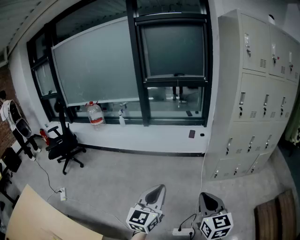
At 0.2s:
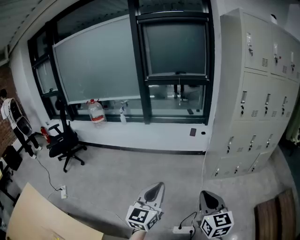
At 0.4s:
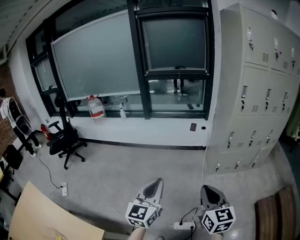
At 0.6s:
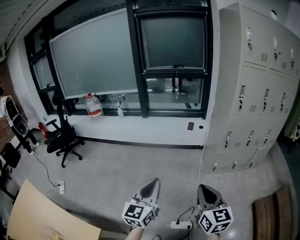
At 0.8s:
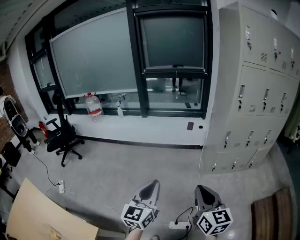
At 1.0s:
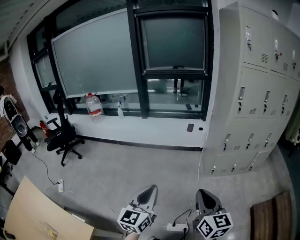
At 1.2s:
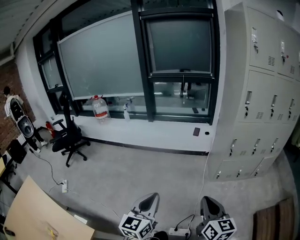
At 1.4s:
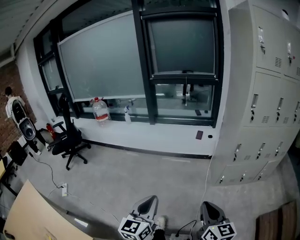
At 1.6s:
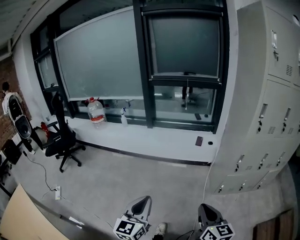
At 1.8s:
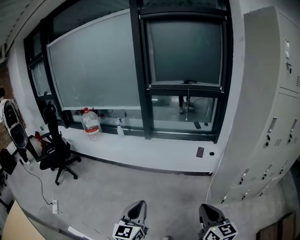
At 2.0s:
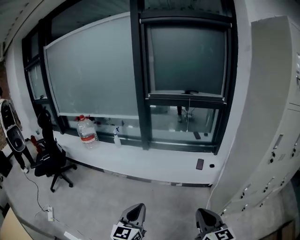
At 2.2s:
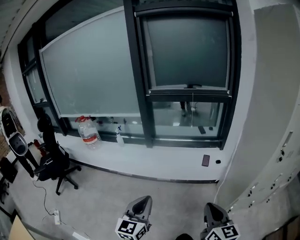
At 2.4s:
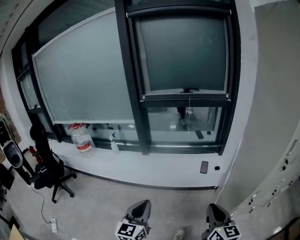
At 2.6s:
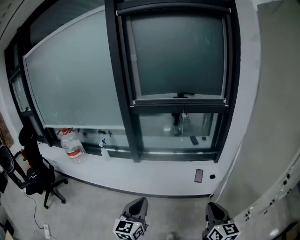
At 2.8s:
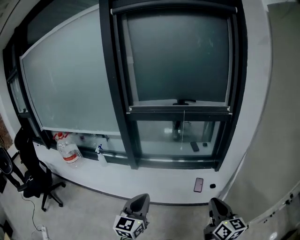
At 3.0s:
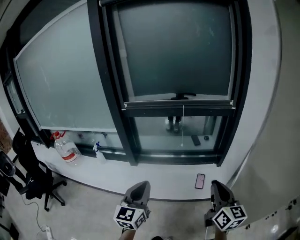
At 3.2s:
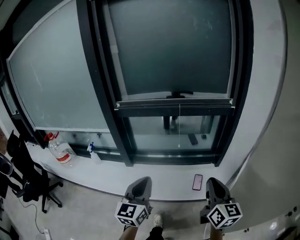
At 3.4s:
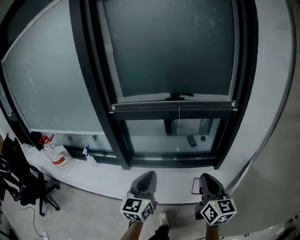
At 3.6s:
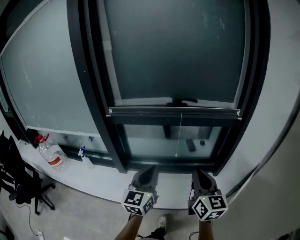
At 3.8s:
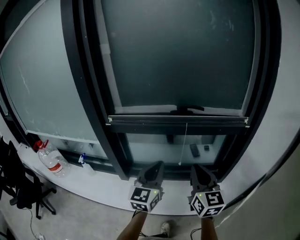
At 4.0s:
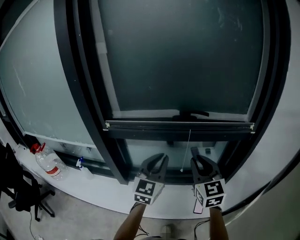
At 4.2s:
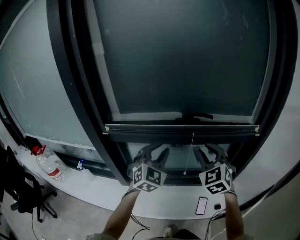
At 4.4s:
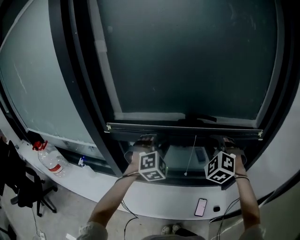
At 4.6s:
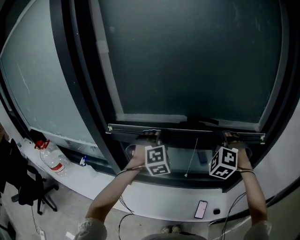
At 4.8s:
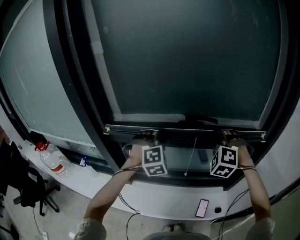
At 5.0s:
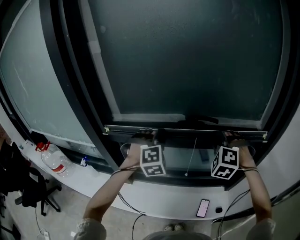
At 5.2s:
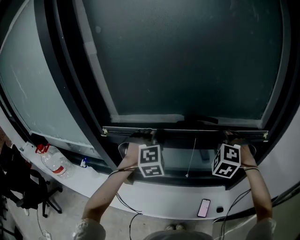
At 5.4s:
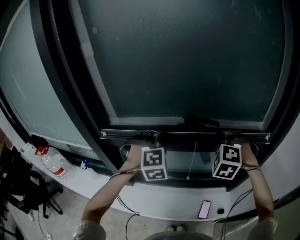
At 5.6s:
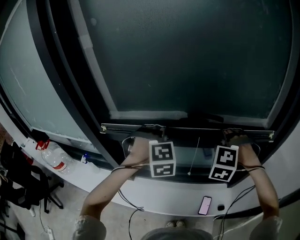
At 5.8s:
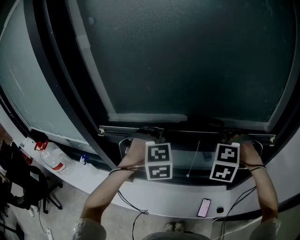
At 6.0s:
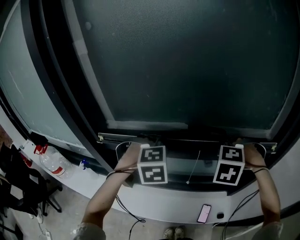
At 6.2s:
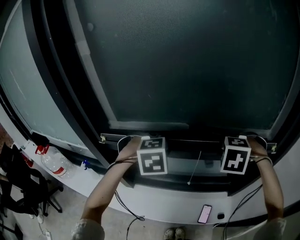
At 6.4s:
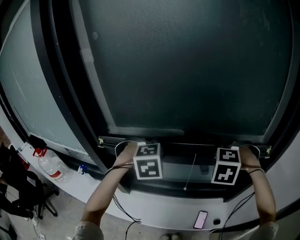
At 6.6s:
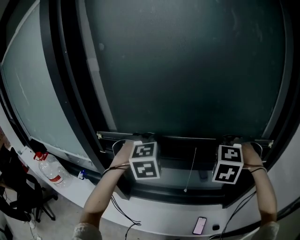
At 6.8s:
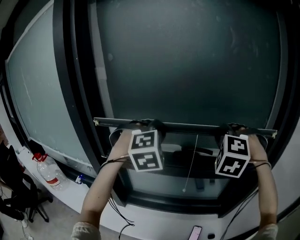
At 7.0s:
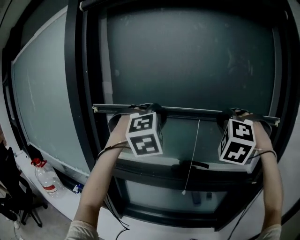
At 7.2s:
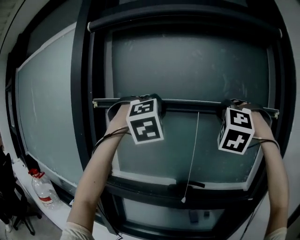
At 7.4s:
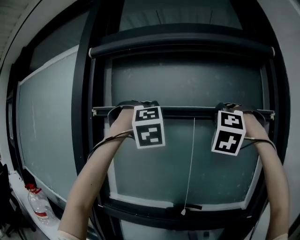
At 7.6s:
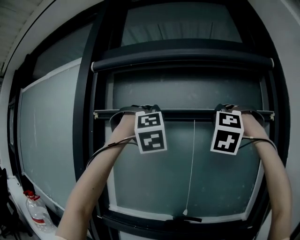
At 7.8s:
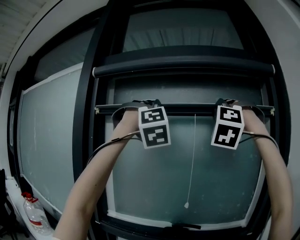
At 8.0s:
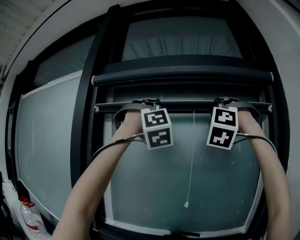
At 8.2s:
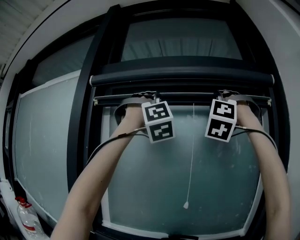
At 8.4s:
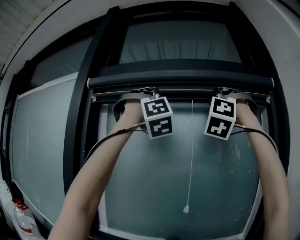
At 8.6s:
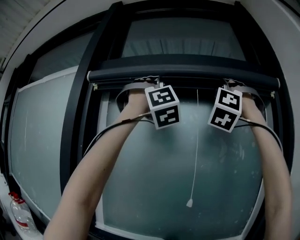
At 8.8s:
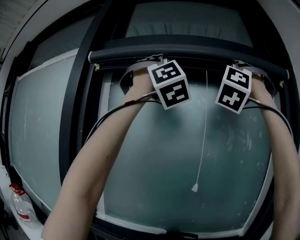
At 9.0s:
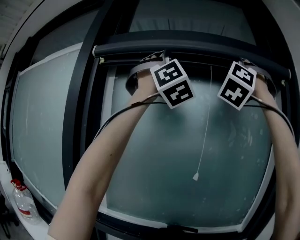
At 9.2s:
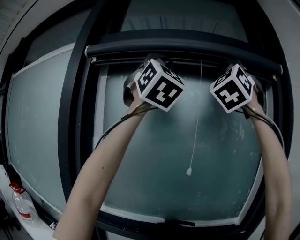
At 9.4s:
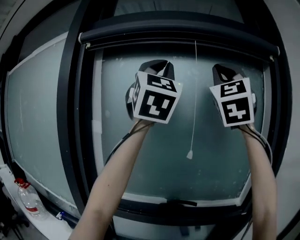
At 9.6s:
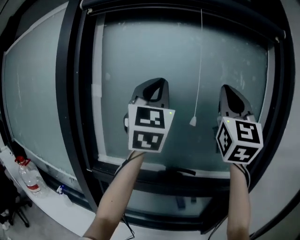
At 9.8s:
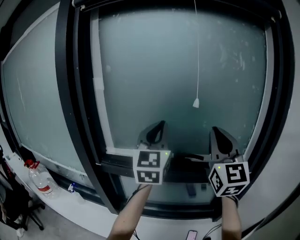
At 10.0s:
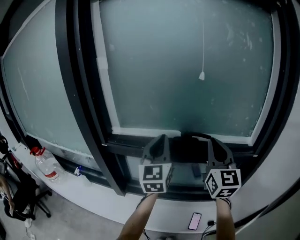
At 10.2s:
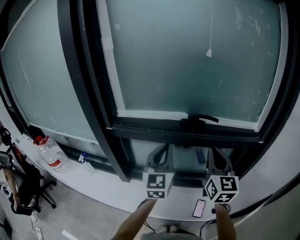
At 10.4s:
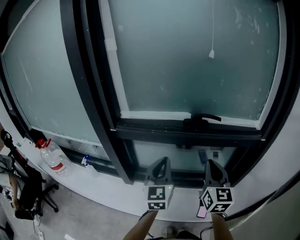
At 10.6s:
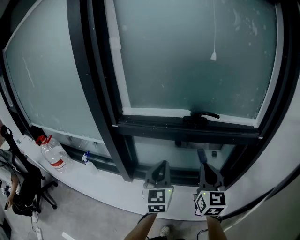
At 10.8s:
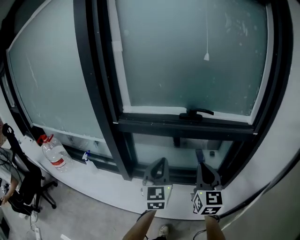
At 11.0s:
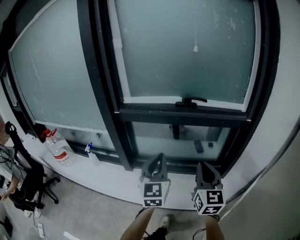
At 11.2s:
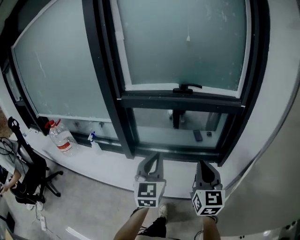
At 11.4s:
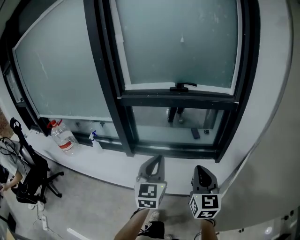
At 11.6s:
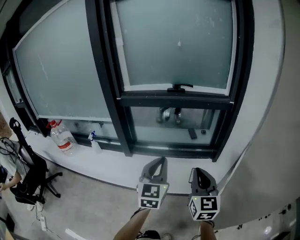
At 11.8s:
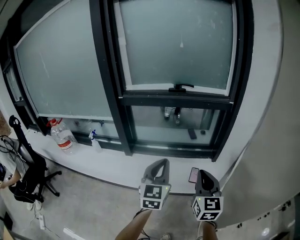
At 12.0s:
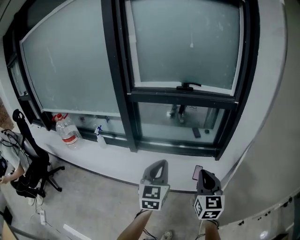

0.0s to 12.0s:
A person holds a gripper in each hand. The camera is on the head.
0.0s to 1.6s: The right gripper travels forward by approximately 15 cm. Meanwhile the left gripper is displaced forward and downward by some 15 cm.
1.6s to 3.0s: Both grippers are carried forward, roughly 60 cm.
3.0s to 4.4s: The pair of grippers is taken forward, about 50 cm. The left gripper rotates around the line of its fingers by some 60 degrees, clockwise from behind, and opens its fingers, while the right gripper twists about 80 degrees counterclockwise, seen from behind, and opens.
4.4s to 6.0s: The left gripper tips its fingers downward by approximately 30 degrees, and closes its fingers, while the right gripper tilts its fingers approximately 30 degrees downward.
6.0s to 7.6s: Both grippers move upward, about 50 cm. The left gripper tilts its fingers some 50 degrees upward, while the right gripper angles its fingers upward, by approximately 60 degrees.
7.6s to 9.0s: Both grippers travel together upward, some 20 cm. The right gripper turns by about 30 degrees. The left gripper tips its fingers upward by about 40 degrees.
9.0s to 10.4s: Both grippers travel together downward, some 70 cm. The right gripper rolls clockwise, seen from behind, by approximately 90 degrees. Meanwhile the left gripper twists approximately 70 degrees counterclockwise, seen from behind.
10.4s to 12.0s: Both grippers move backward, about 40 cm.

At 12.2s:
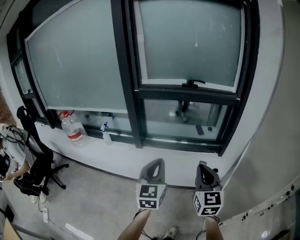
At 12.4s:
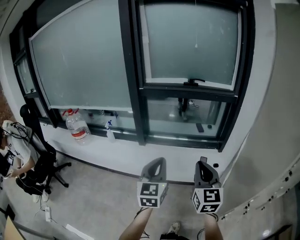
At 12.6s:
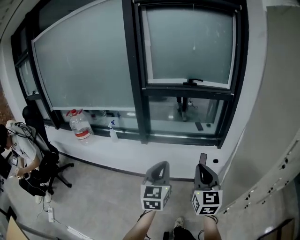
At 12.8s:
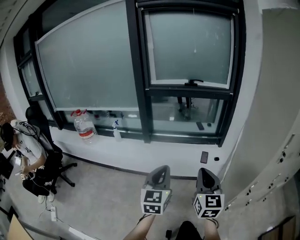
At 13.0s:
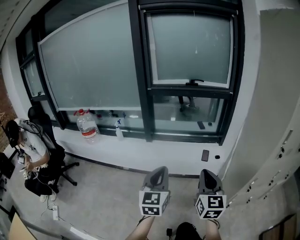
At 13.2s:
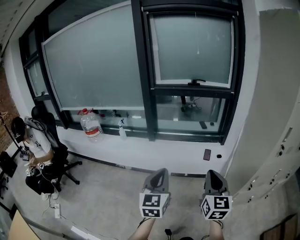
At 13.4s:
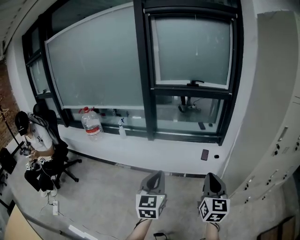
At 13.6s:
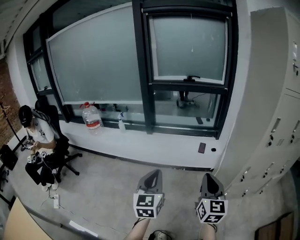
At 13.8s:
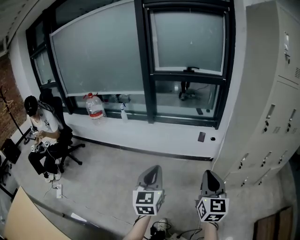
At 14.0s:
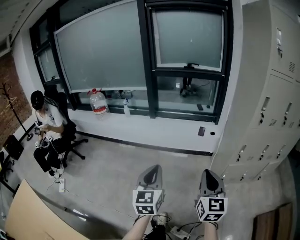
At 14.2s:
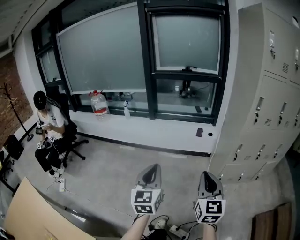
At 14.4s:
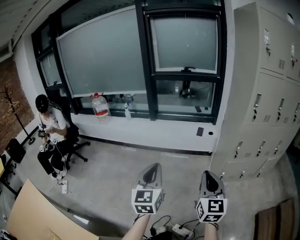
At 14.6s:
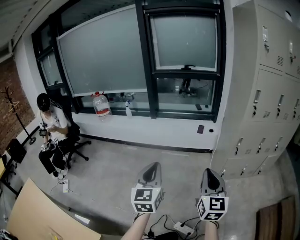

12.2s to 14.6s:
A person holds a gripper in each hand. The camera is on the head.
12.2s to 13.4s: Both grippers move backward, approximately 30 cm.
13.4s to 14.6s: The two grippers go about 30 cm backward.

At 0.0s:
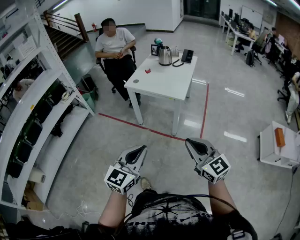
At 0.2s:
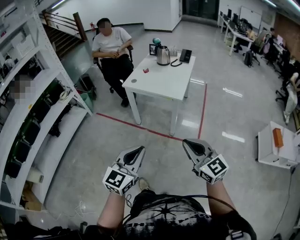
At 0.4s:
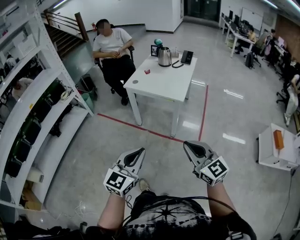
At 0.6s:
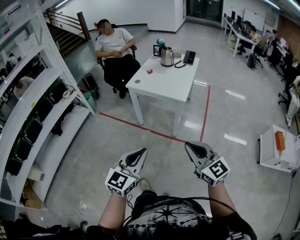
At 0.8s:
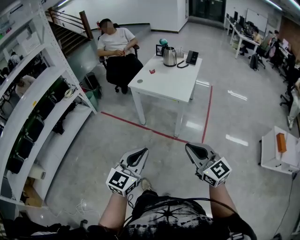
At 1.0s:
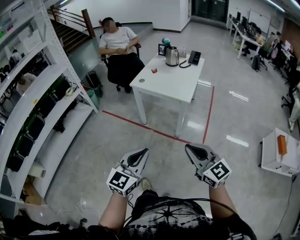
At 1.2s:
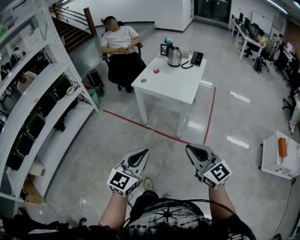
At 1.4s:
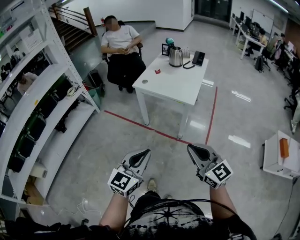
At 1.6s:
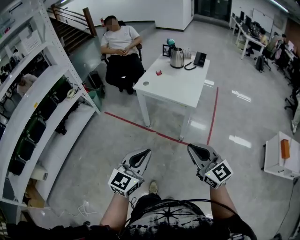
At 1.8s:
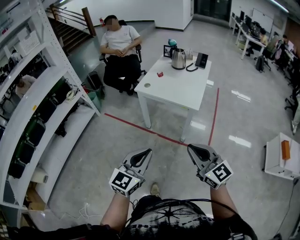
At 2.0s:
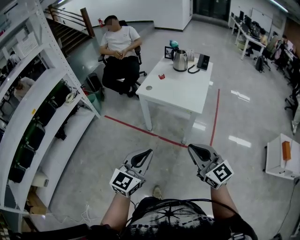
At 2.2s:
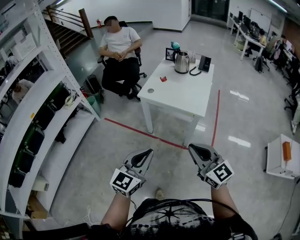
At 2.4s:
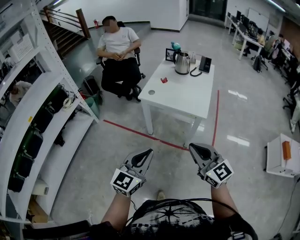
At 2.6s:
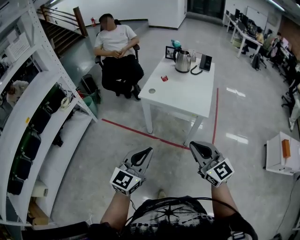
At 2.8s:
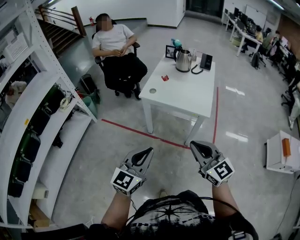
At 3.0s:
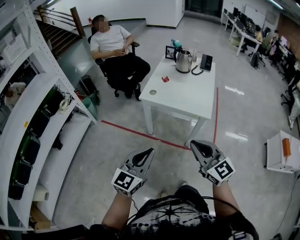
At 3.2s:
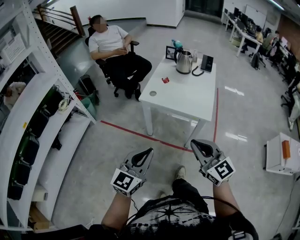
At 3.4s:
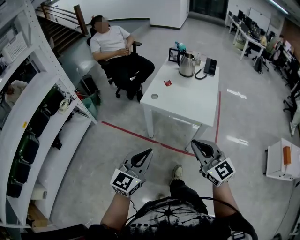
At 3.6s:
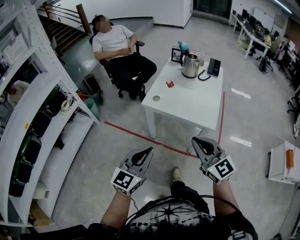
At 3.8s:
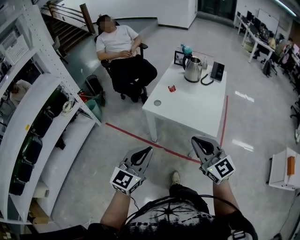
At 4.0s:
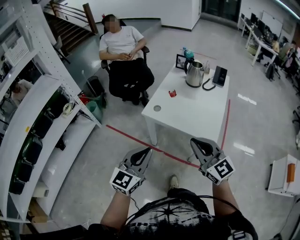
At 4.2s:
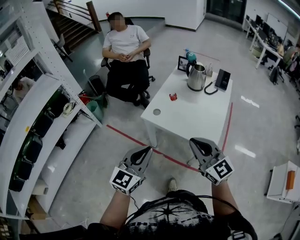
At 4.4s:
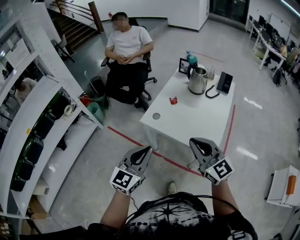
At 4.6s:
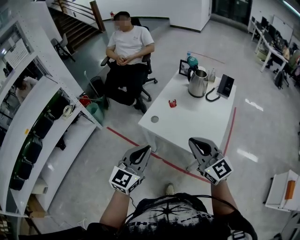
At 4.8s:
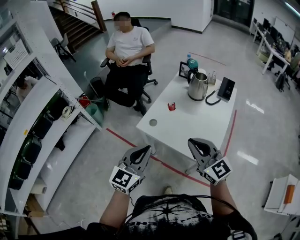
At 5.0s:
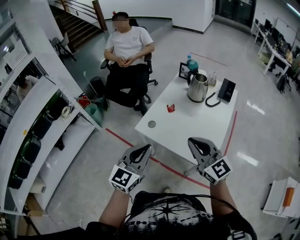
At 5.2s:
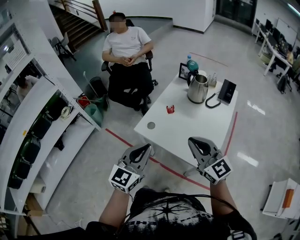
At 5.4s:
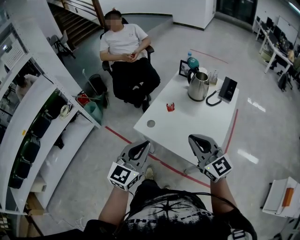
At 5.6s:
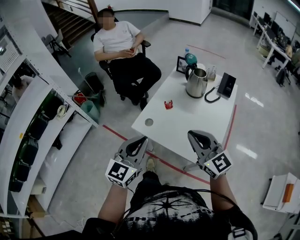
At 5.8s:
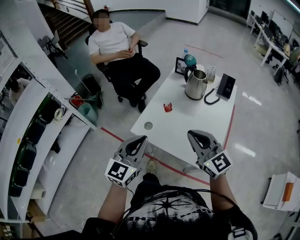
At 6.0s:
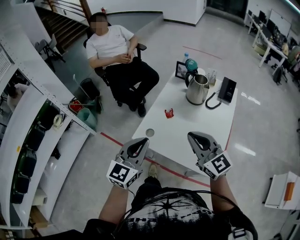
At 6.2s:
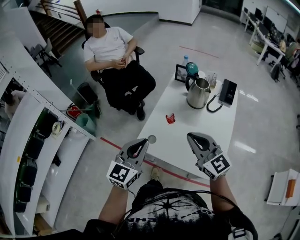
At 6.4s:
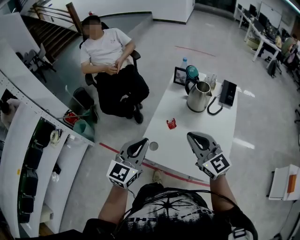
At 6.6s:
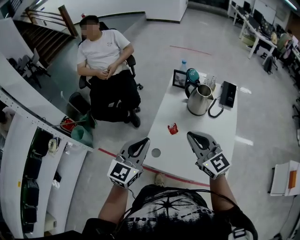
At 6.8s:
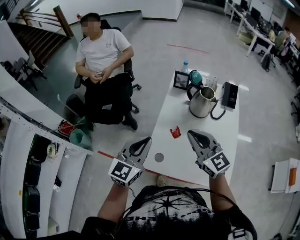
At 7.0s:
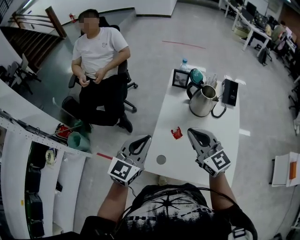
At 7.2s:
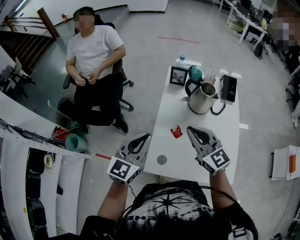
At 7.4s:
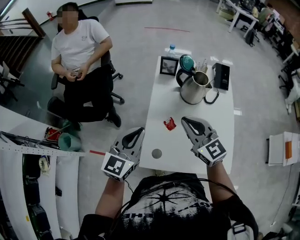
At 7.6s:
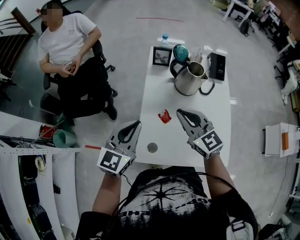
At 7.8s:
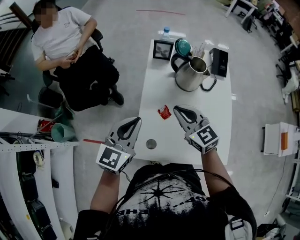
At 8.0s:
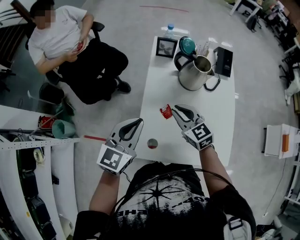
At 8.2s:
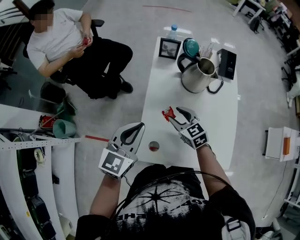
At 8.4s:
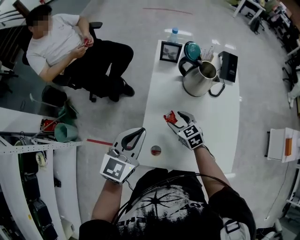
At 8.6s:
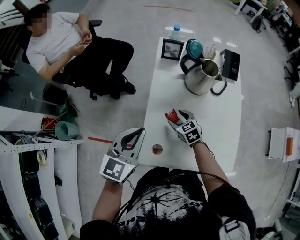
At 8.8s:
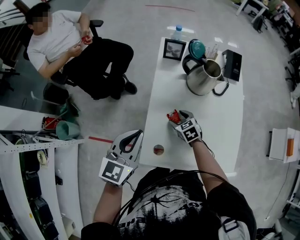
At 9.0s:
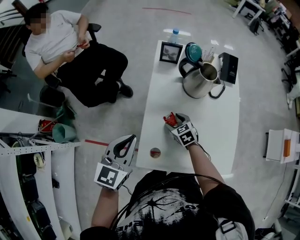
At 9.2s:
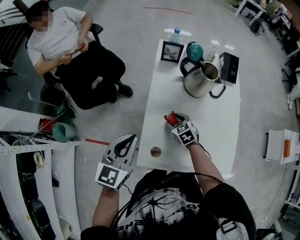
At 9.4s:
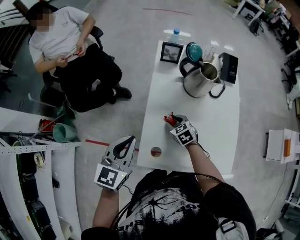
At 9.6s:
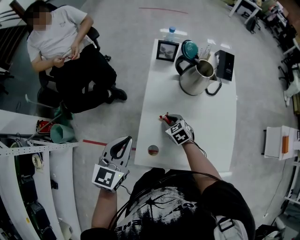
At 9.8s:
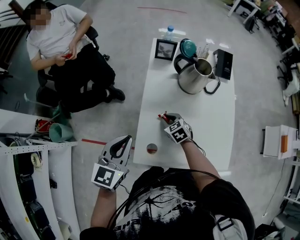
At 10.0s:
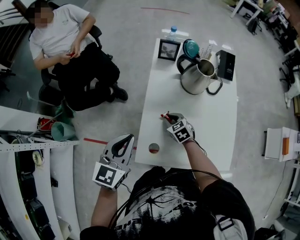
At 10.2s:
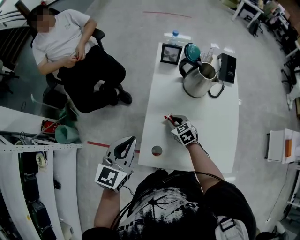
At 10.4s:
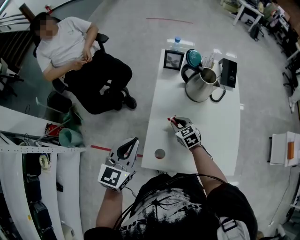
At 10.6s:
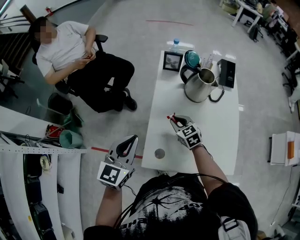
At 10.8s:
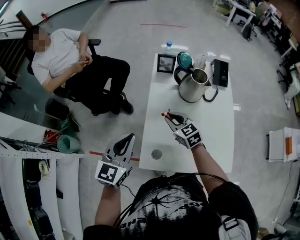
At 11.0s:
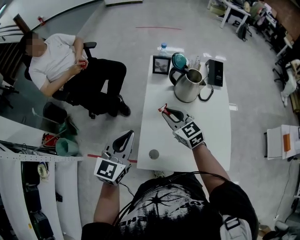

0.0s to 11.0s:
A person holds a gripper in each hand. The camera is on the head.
0.0s to 1.6s: Both grippers move forward, approximately 5 cm.
1.6s to 3.2s: The grippers both shift forward and to the left by approximately 20 cm.
3.2s to 4.8s: Both grippers move forward, approximately 30 cm.
4.8s to 6.2s: The grippers both shift forward by some 15 cm.
6.2s to 7.8s: The right gripper travels forward and downward by approximately 25 cm, and swivels some 20 degrees. The left gripper heads forward, covering about 20 cm.
7.8s to 9.4s: The left gripper shifts by some 5 cm, while the right gripper goes some 25 cm downward, angles its fingers downward, by some 30 degrees, and opens its fingers.
9.4s to 11.0s: The left gripper moves upward, about 5 cm. The right gripper shifts approximately 20 cm upward, angles its fingers upward, by roughly 30 degrees, and closes its fingers.
